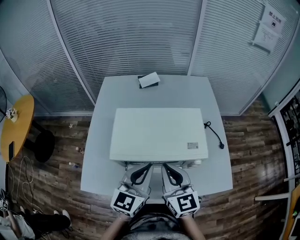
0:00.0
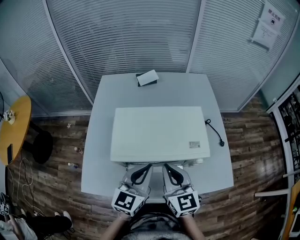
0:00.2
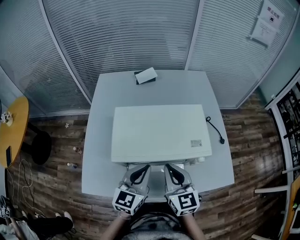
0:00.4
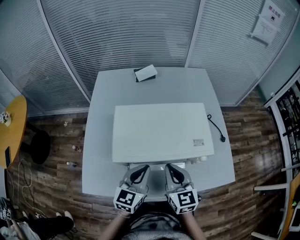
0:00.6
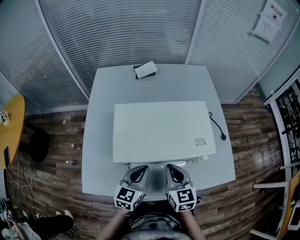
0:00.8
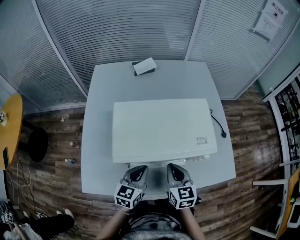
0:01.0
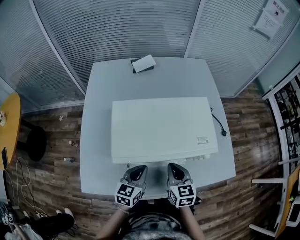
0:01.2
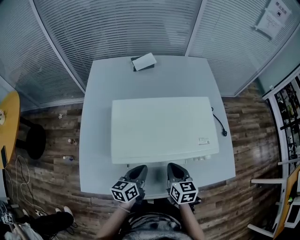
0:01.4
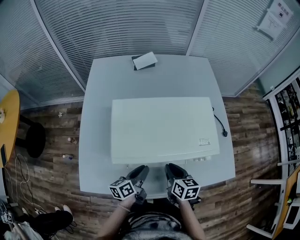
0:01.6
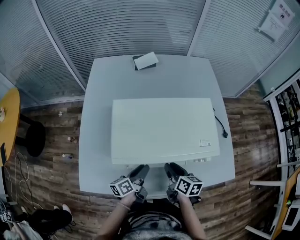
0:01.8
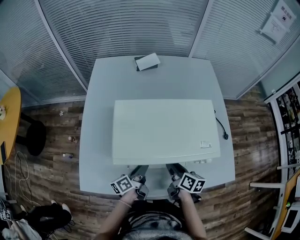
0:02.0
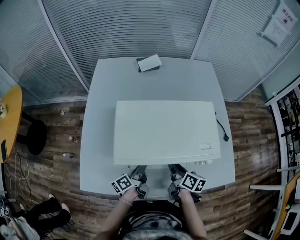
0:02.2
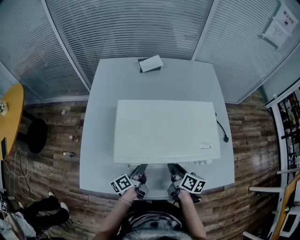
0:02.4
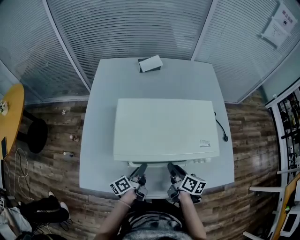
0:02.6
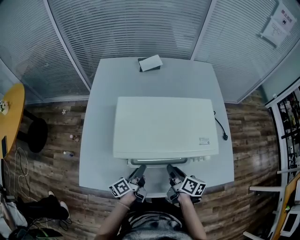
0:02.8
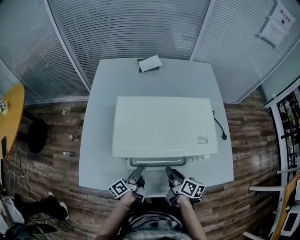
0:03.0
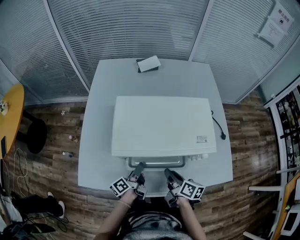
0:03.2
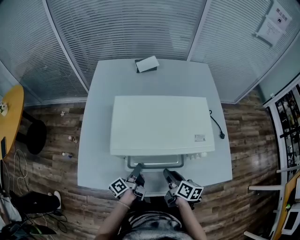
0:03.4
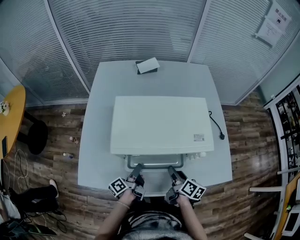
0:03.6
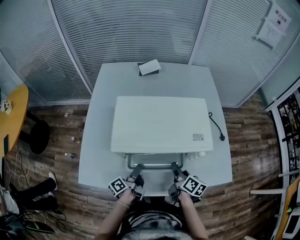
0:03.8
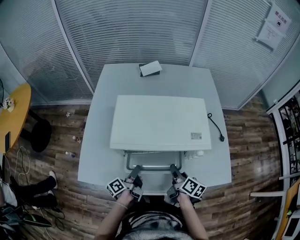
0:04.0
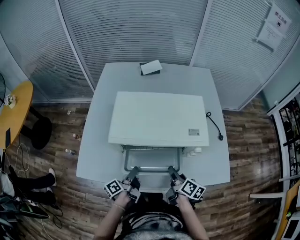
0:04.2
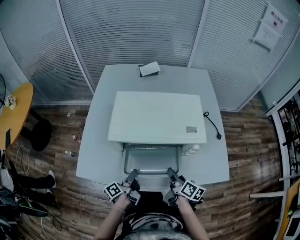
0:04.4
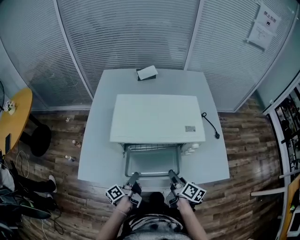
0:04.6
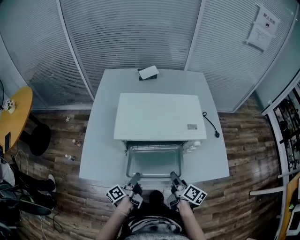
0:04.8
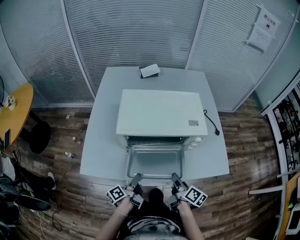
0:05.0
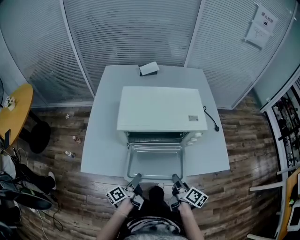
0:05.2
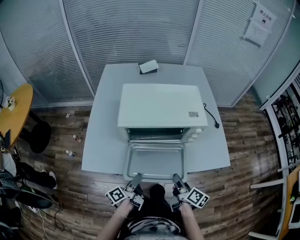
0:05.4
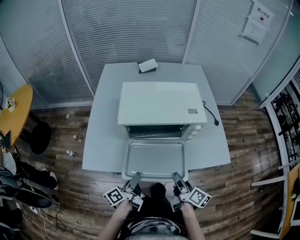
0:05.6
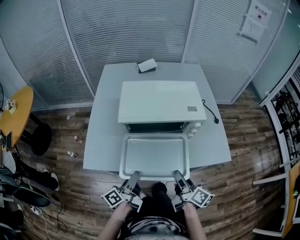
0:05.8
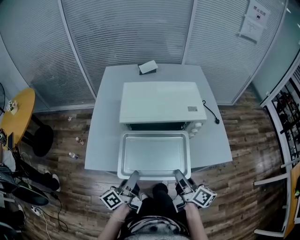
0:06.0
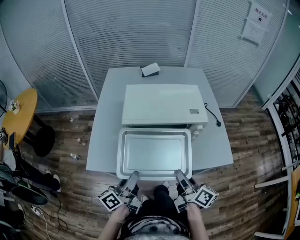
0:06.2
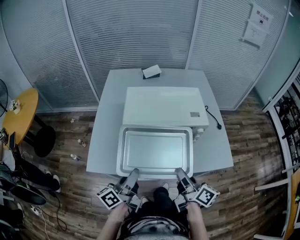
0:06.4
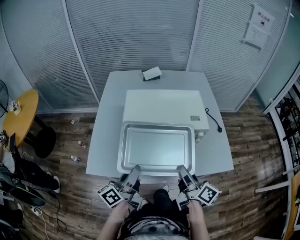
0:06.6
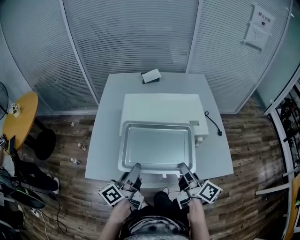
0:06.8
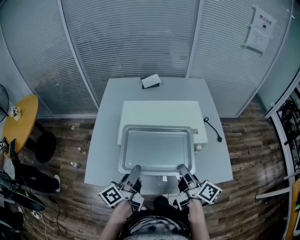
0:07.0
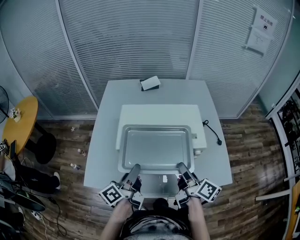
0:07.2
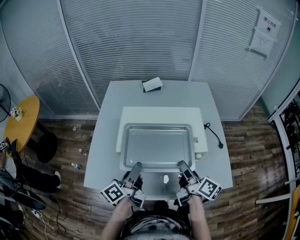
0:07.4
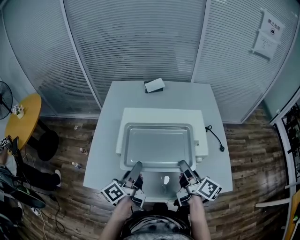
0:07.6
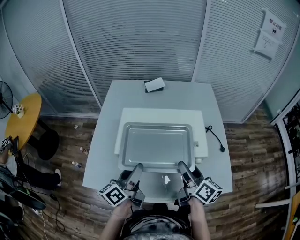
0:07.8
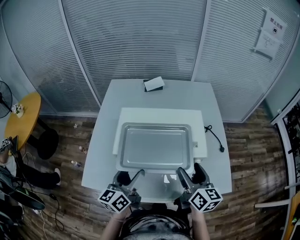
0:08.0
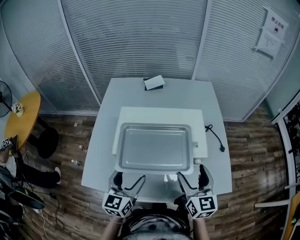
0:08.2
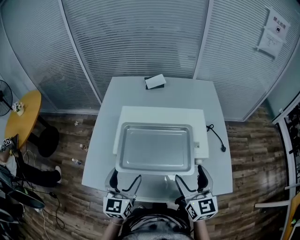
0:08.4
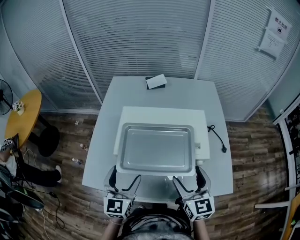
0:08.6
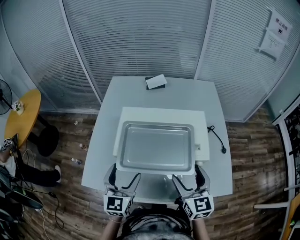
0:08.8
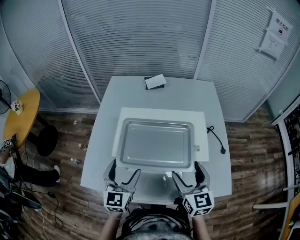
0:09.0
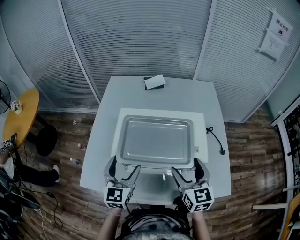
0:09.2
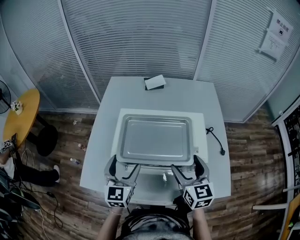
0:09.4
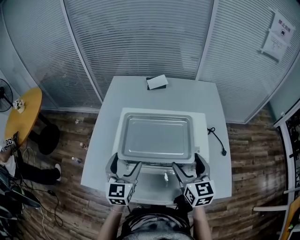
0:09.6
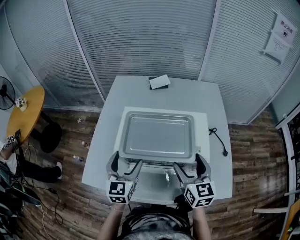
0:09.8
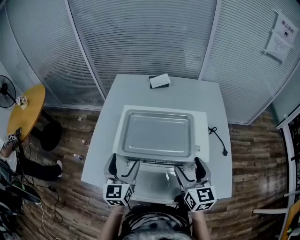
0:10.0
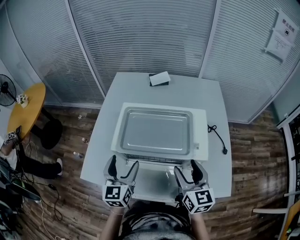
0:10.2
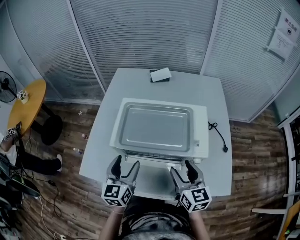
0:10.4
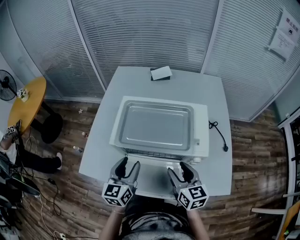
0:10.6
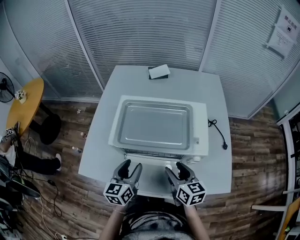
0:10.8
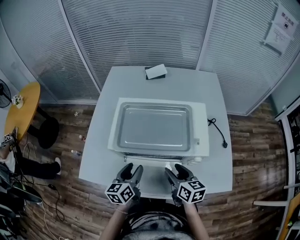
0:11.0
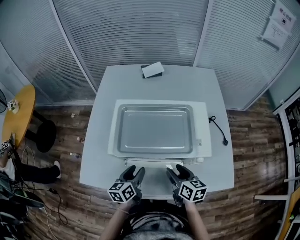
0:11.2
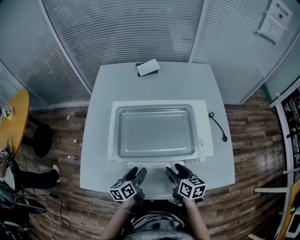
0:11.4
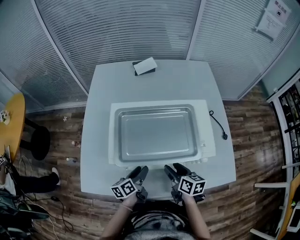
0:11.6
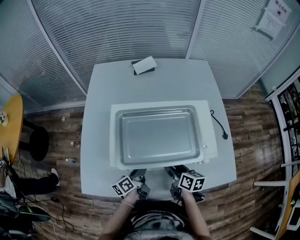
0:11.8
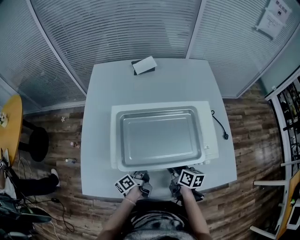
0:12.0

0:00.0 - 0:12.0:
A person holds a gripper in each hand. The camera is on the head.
0:00.0 - 0:01.6: Both grippers travel together downward, roughly 20 cm. The left gripper rolls counterclockwise, seen from behind, by some 60 degrees, while the right gripper changes its angle by approximately 40 degrees.
0:01.6 - 0:03.0: The left gripper changes its angle by approximately 30 degrees. Meanwhile the right gripper turns by approximately 30 degrees.
0:03.0 - 0:04.4: The right gripper shifts roughly 5 cm to the right, while the left gripper is displaced backward by some 5 cm.
0:04.4 - 0:06.0: The right gripper goes some 15 cm backward and upward. Meanwhile the left gripper moves upward and backward, some 20 cm, and rotates roughly 20 degrees.
0:06.0 - 0:07.6: Both grippers move forward, about 20 cm.
0:07.6 - 0:09.0: The left gripper rolls clockwise, seen from behind, by roughly 70 degrees, and opens up, while the right gripper rolls counterclockwise, seen from behind, by approximately 60 degrees, and opens its fingers.
0:09.0 - 0:10.4: The grippers stay close to where they were, moving slightly.
0:10.4 - 0:12.0: Both grippers move downward, some 20 cm. The right gripper rotates some 40 degrees, while the left gripper rolls counterclockwise, seen from behind, by approximately 70 degrees, and closes its fingers.

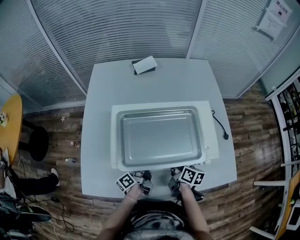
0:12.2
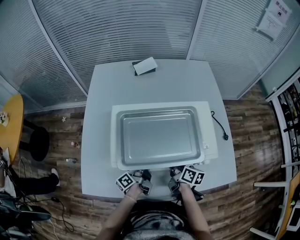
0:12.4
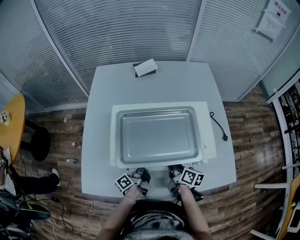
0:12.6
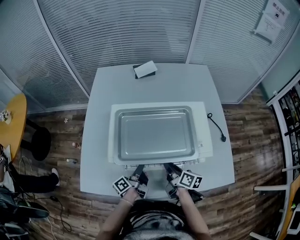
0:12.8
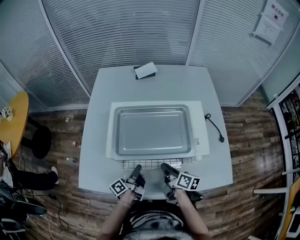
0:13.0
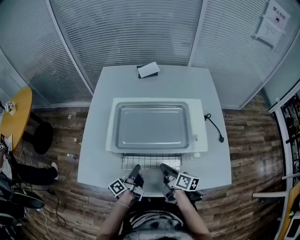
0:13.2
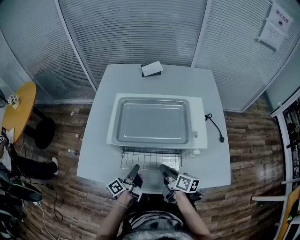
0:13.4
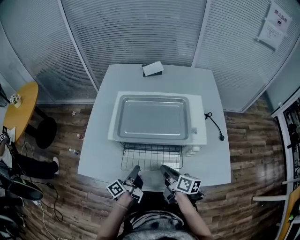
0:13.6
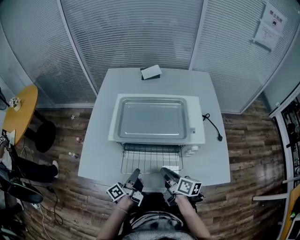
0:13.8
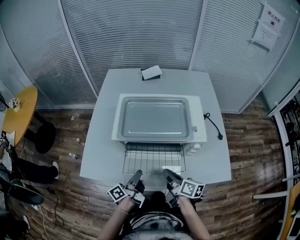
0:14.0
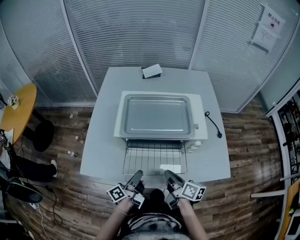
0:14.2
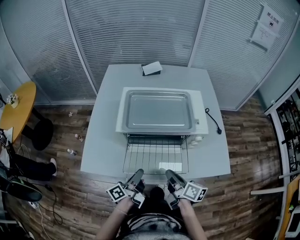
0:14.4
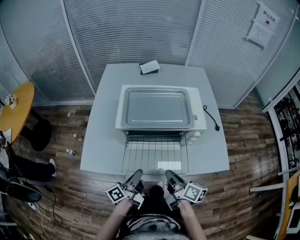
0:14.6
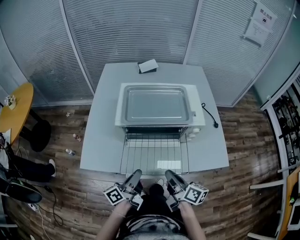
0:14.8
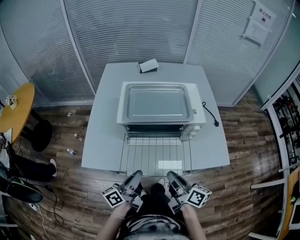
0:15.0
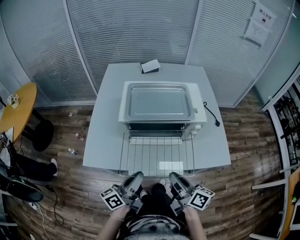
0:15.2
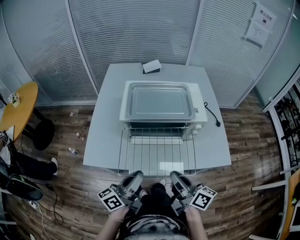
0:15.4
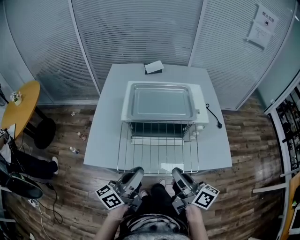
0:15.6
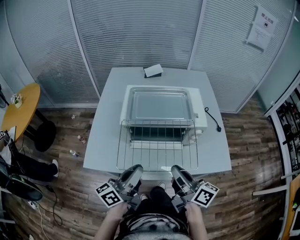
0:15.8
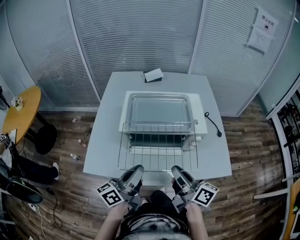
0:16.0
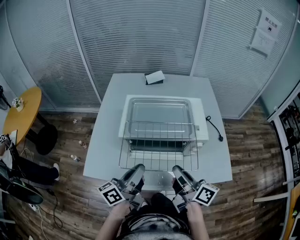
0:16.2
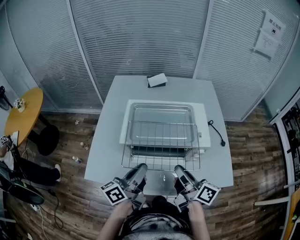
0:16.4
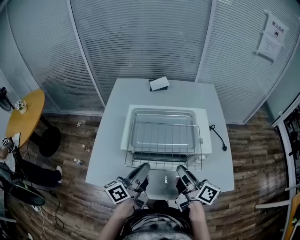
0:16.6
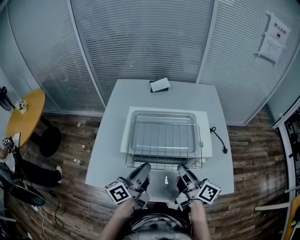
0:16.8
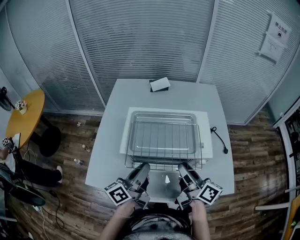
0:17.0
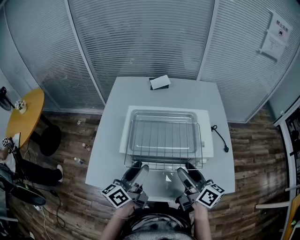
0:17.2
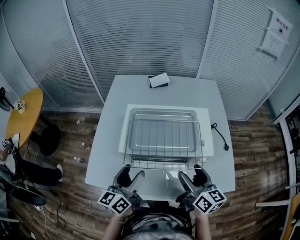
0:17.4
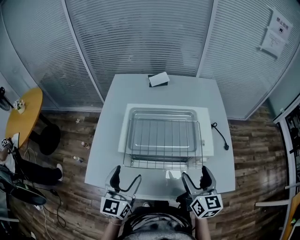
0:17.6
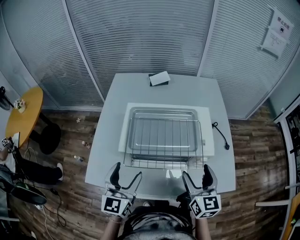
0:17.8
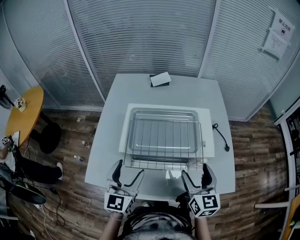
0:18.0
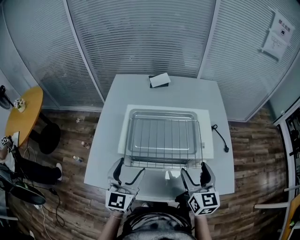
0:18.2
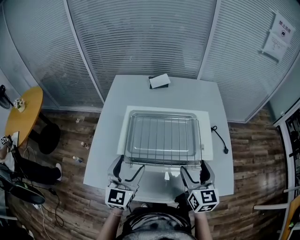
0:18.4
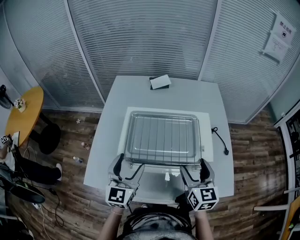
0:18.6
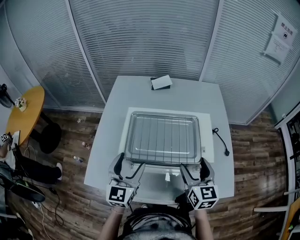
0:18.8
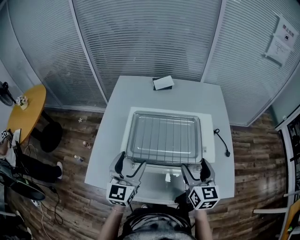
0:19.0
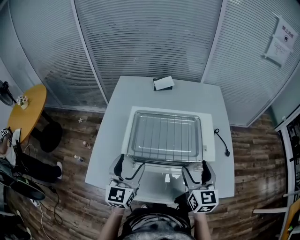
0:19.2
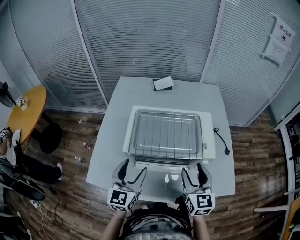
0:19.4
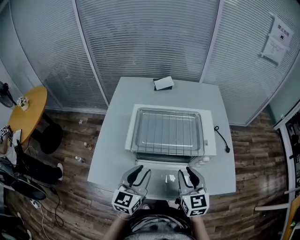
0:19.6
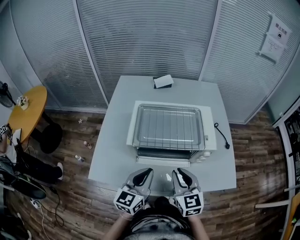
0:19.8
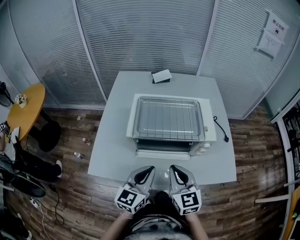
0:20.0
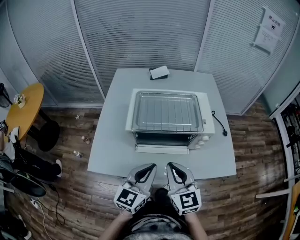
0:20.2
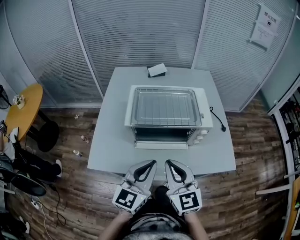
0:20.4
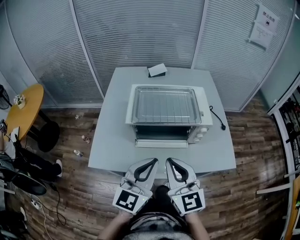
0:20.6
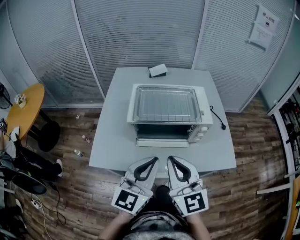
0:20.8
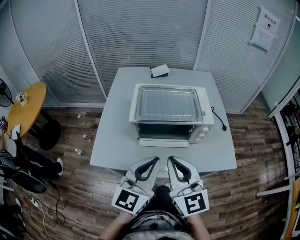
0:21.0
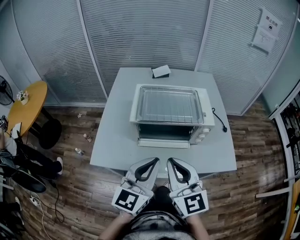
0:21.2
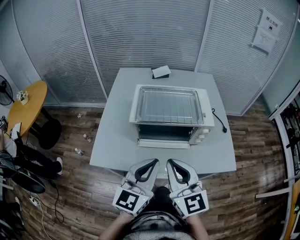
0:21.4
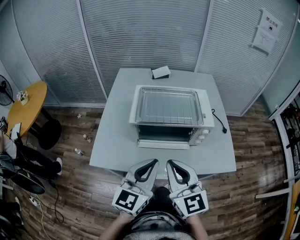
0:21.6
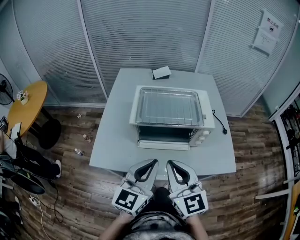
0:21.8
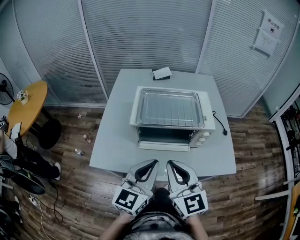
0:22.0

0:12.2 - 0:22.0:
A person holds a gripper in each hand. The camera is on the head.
0:12.2 - 0:13.6: The right gripper is displaced backward by about 10 cm. Meanwhile the left gripper shifts roughly 15 cm backward and upward.
0:13.6 - 0:15.0: The grippers both shift backward and upward by approximately 15 cm.
0:15.0 - 0:16.4: Both grippers move forward and upward, some 15 cm.
0:16.4 - 0:17.8: The right gripper shifts about 5 cm to the right, twists some 50 degrees counterclockwise, seen from behind, and opens. The left gripper moves to the left, some 5 cm, rolls clockwise, seen from behind, by about 60 degrees, and opens up.
0:19.2 - 0:20.6: The left gripper is displaced backward and to the right by about 20 cm, and closes up. The right gripper moves backward and to the left, some 20 cm, and closes.
0:20.6 - 0:22.0: There are only small adjustments of the grippers.

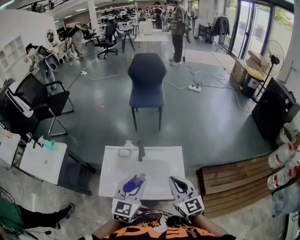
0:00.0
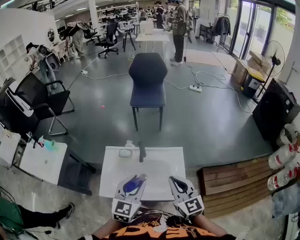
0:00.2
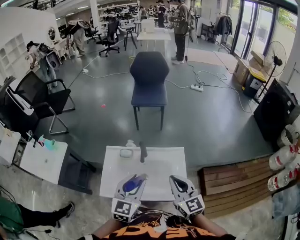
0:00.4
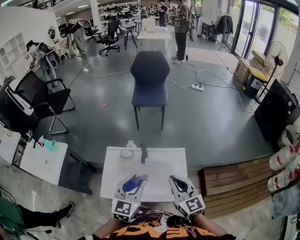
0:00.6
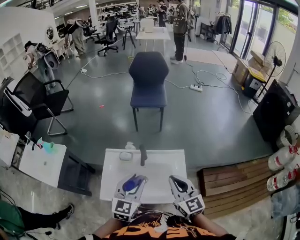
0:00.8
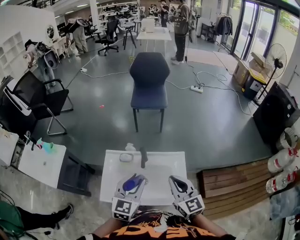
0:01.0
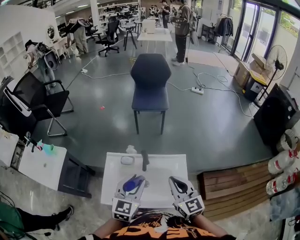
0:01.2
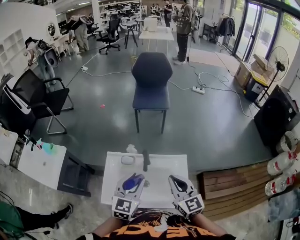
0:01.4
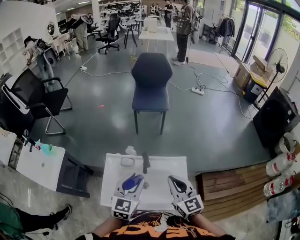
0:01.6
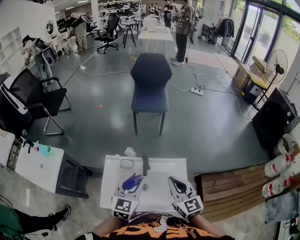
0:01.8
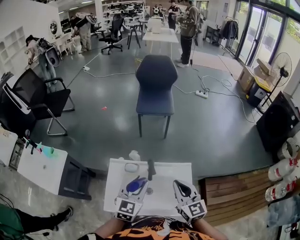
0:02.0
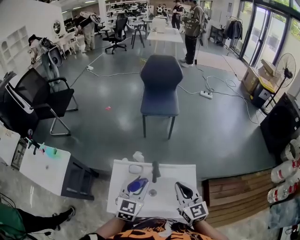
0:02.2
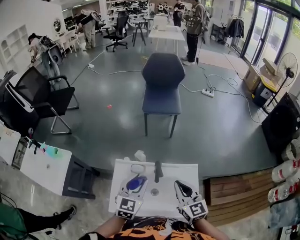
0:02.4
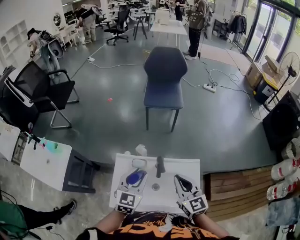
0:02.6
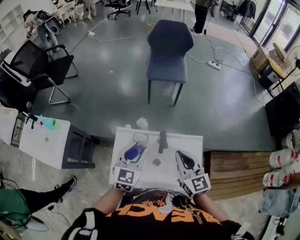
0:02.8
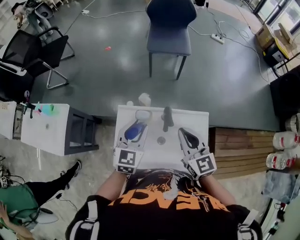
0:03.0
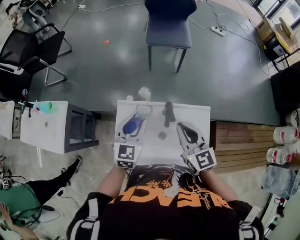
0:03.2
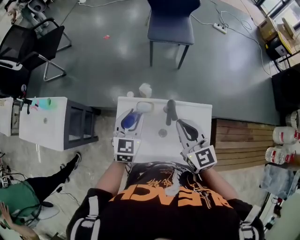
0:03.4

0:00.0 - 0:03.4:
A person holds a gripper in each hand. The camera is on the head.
0:00.0 - 0:01.6: Both grippers travel together forward, about 10 cm.
0:01.6 - 0:03.4: The left gripper travels forward, to the left and downward by some 20 cm, while the right gripper heads forward and to the left, covering some 15 cm.
